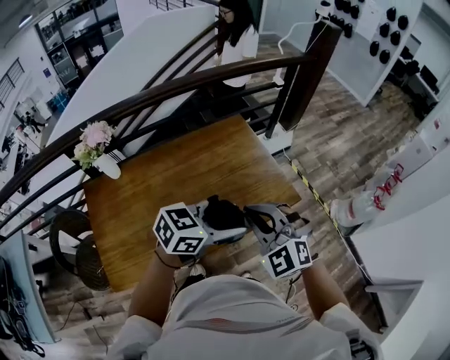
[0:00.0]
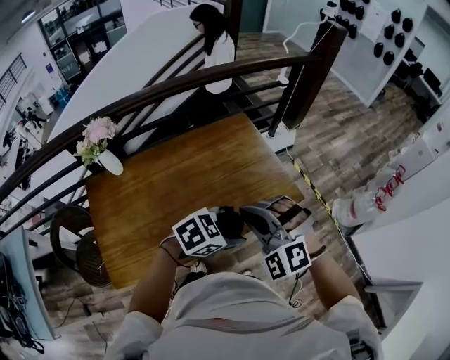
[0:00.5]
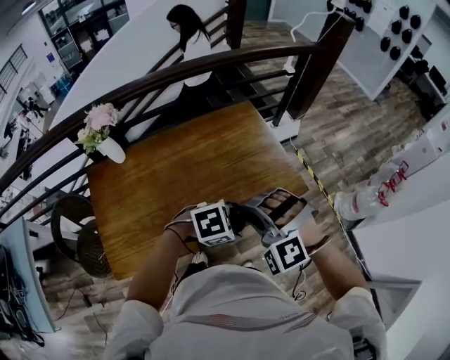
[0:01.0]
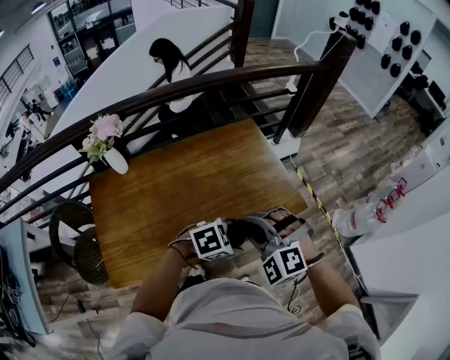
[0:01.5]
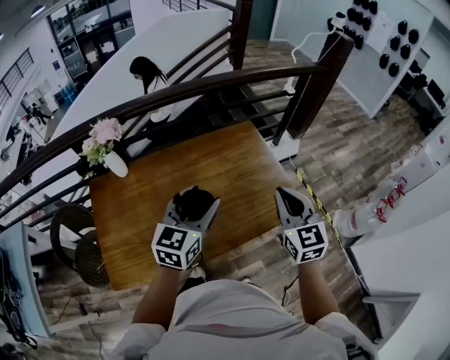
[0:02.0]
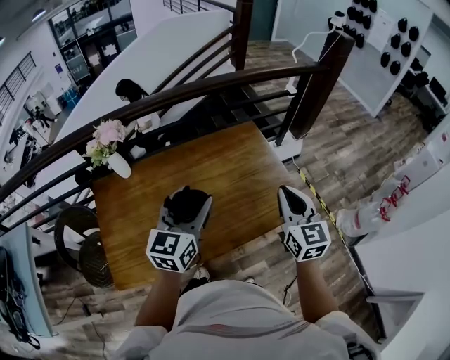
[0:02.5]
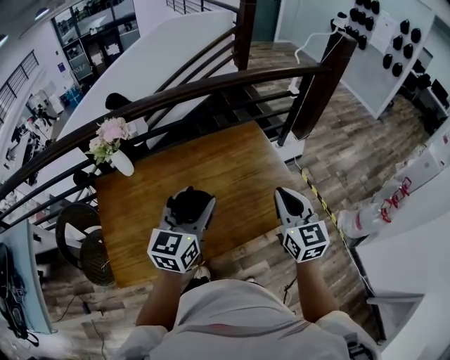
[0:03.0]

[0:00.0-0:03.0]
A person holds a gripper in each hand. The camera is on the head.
0:00.0 to 0:01.5: The right gripper ends up roughly 5 cm from where it was, and rotates roughly 20 degrees. Meanwhile the left gripper moves downward, about 15 cm, and tilts its fingers roughly 30 degrees downward.
0:01.5 to 0:03.0: The left gripper is displaced upward by roughly 15 cm, and points its fingers approximately 40 degrees further upward, while the right gripper changes place by approximately 15 cm, and rolls clockwise, seen from behind, by some 60 degrees.

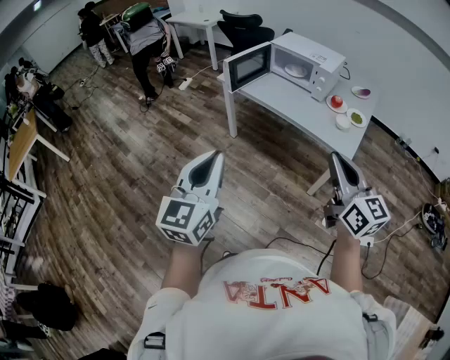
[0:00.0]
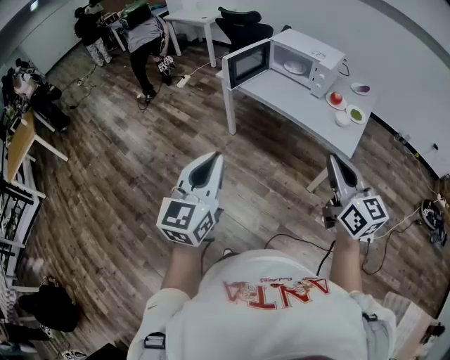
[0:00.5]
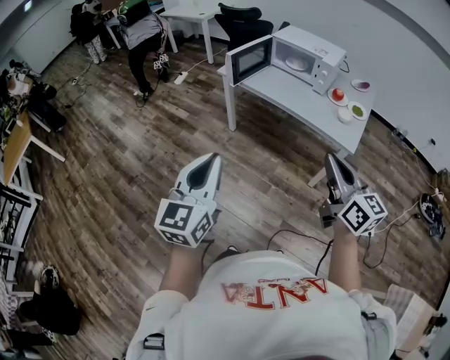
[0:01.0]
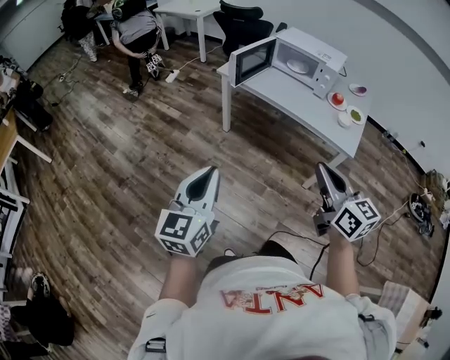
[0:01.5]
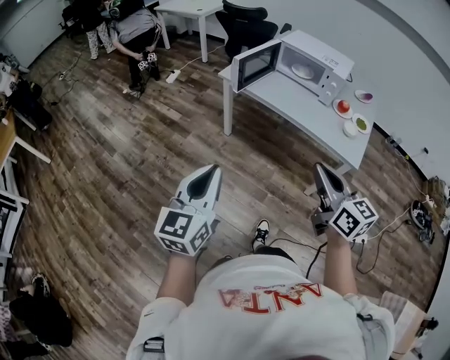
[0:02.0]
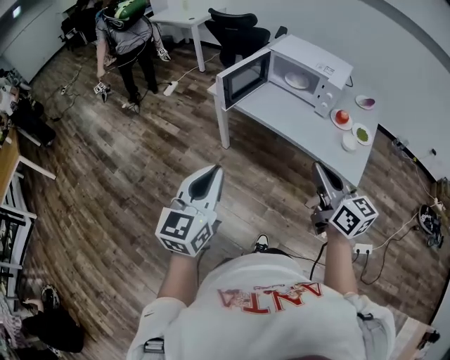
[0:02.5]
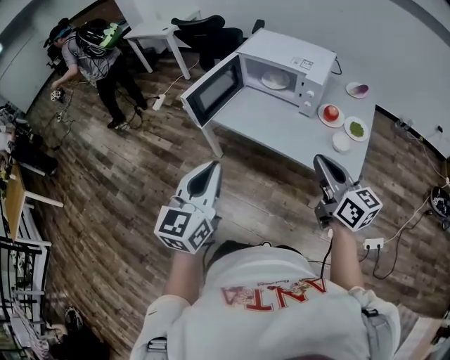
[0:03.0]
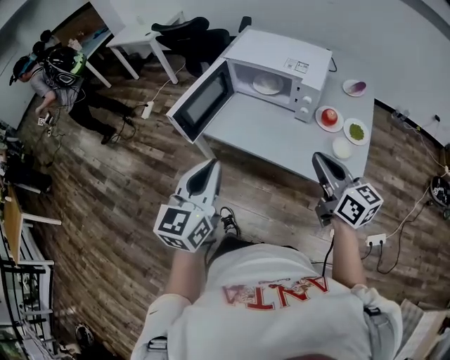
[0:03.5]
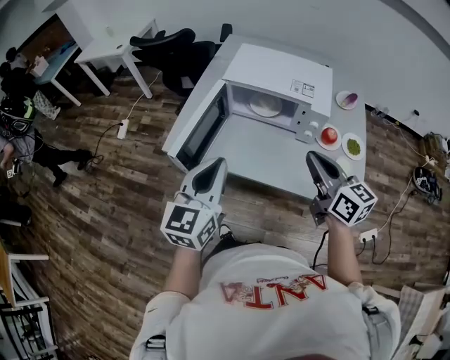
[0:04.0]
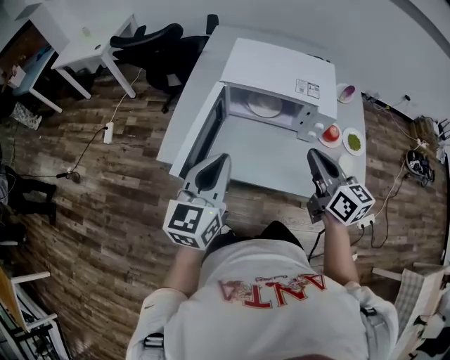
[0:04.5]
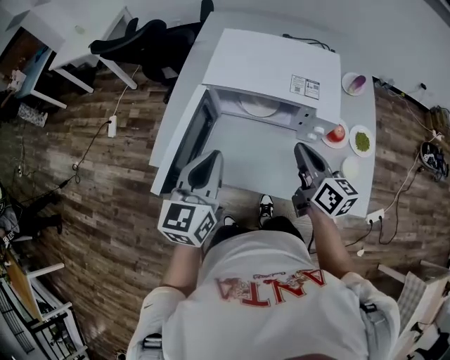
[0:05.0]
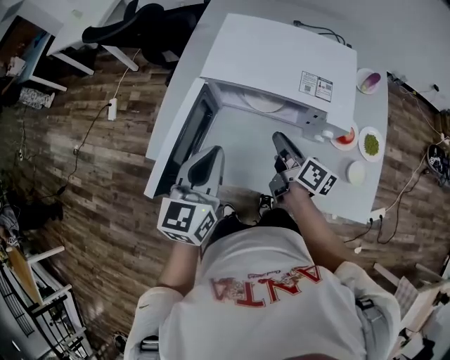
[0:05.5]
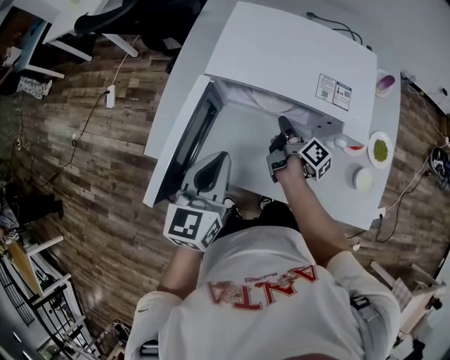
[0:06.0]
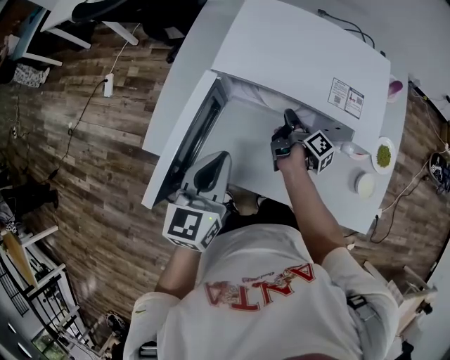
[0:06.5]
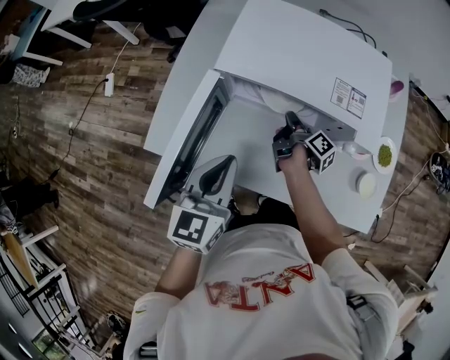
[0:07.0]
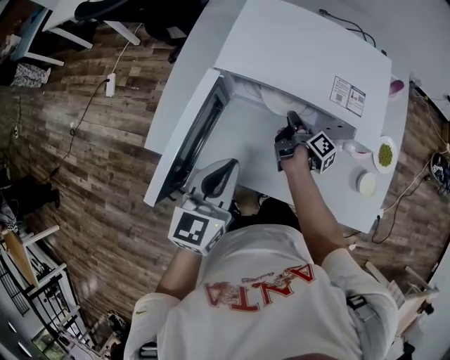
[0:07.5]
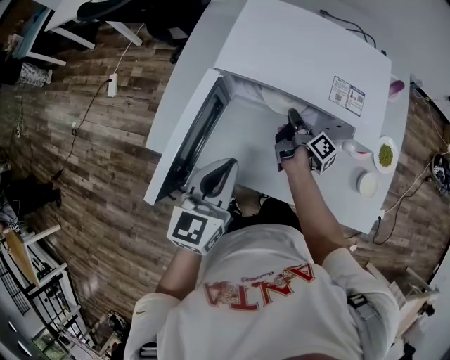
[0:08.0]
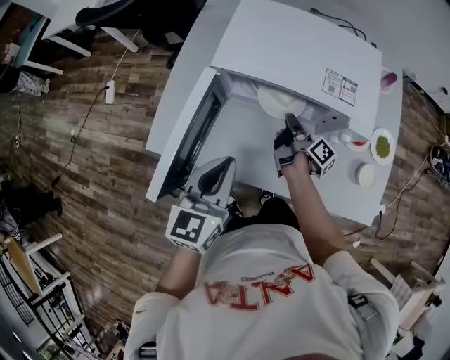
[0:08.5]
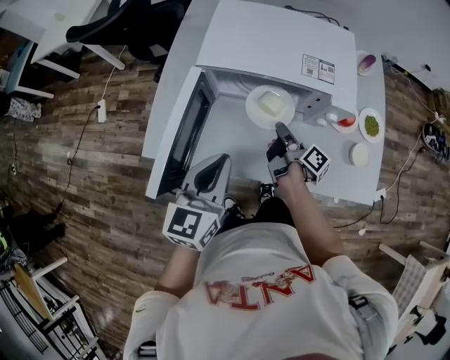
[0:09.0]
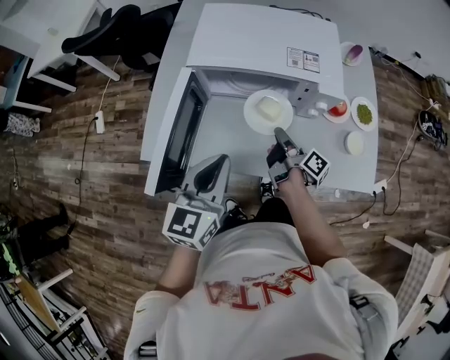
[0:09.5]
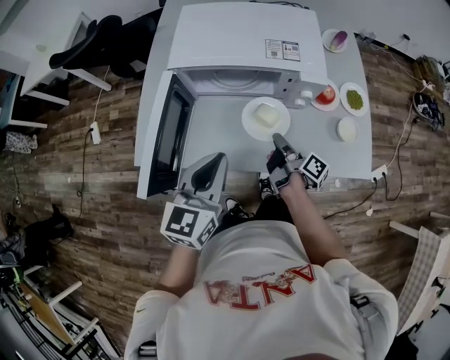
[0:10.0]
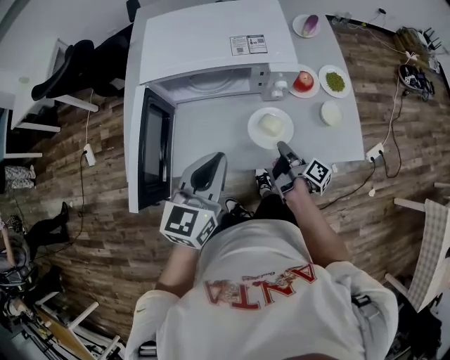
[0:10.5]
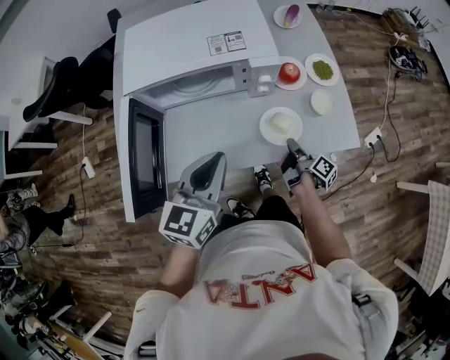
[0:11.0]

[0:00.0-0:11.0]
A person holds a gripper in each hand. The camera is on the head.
0:00.0 to 0:02.0: The grippers both shift to the left, forward and downward by roughly 15 cm.
0:02.0 to 0:03.5: The grippers both shift forward and to the right by about 35 cm.
0:03.5 to 0:05.5: The right gripper is displaced forward and downward by roughly 35 cm, and changes its angle by some 40 degrees; the left gripper heads forward, covering approximately 30 cm.
0:05.5 to 0:07.5: The left gripper moves downward, roughly 5 cm, while the right gripper moves downward and forward, some 15 cm, and changes its angle by some 30 degrees.
0:07.5 to 0:09.0: The right gripper goes approximately 10 cm backward and upward.
0:09.0 to 0:11.0: The right gripper travels to the right and backward by approximately 25 cm. The left gripper is displaced to the right by some 10 cm, and changes its angle by roughly 20 degrees.

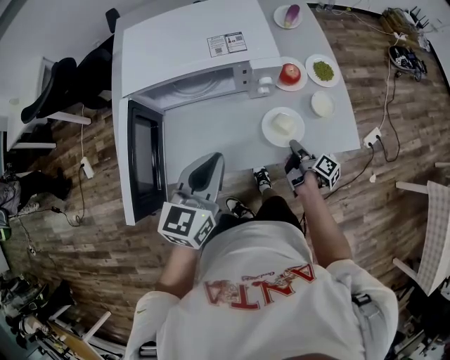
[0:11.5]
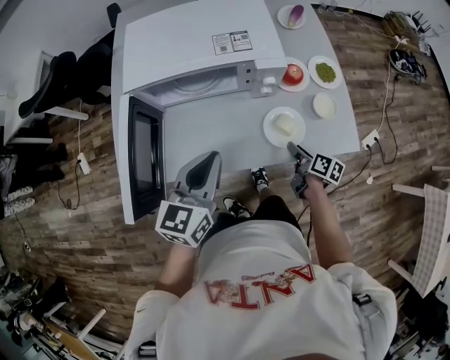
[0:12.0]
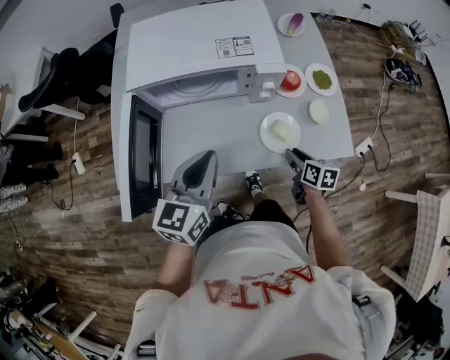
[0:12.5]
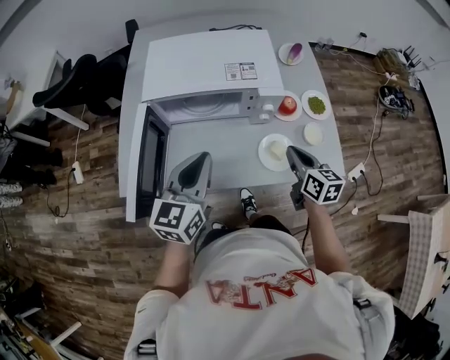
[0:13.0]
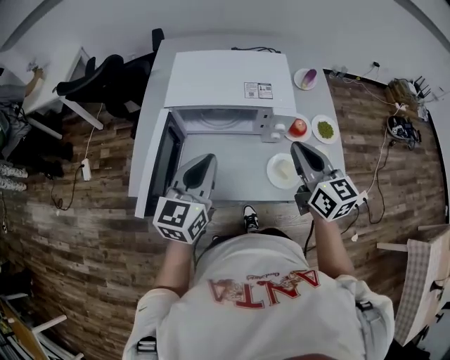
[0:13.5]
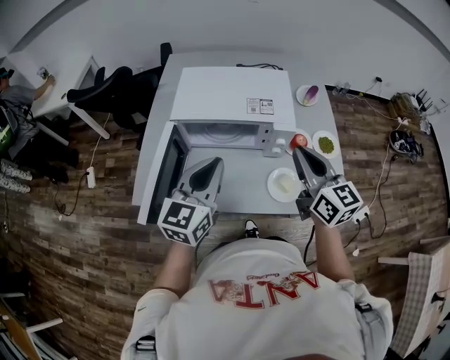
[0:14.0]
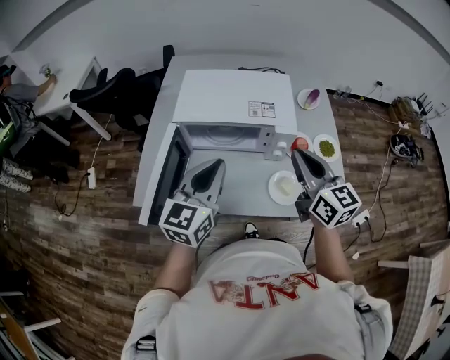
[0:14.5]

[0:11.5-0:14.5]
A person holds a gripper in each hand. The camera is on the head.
0:11.5 to 0:13.0: The right gripper goes approximately 20 cm upward, rolls counterclockwise, seen from behind, by roughly 70 degrees, and opens and closes again, while the left gripper ends up roughly 5 cm from where it was.
0:13.0 to 0:14.5: The left gripper moves upward, some 5 cm, while the right gripper travels upward by approximately 20 cm, and swivels roughly 30 degrees.

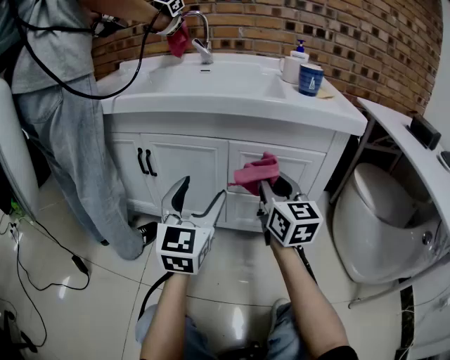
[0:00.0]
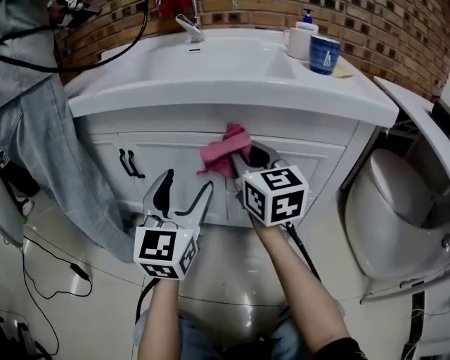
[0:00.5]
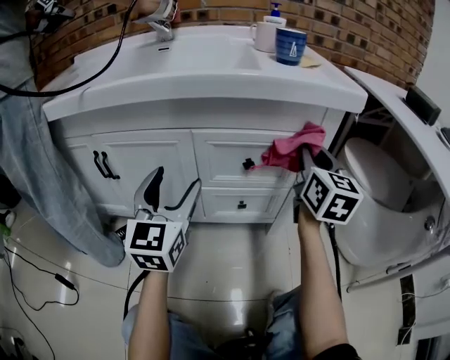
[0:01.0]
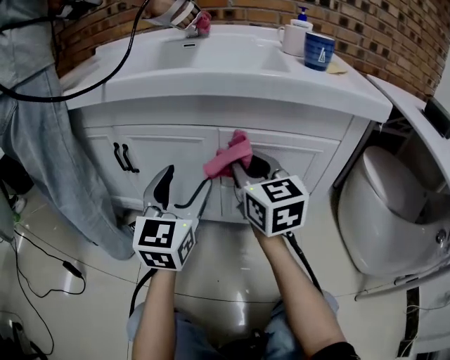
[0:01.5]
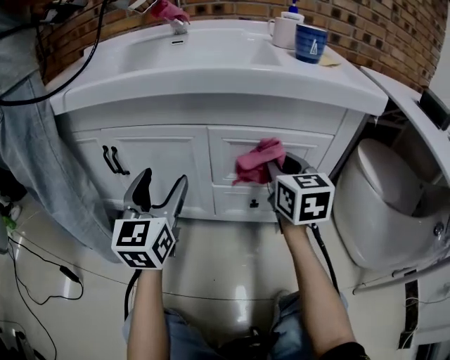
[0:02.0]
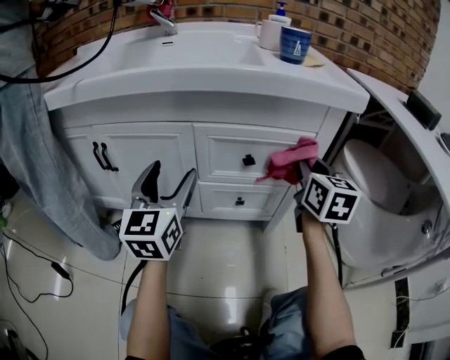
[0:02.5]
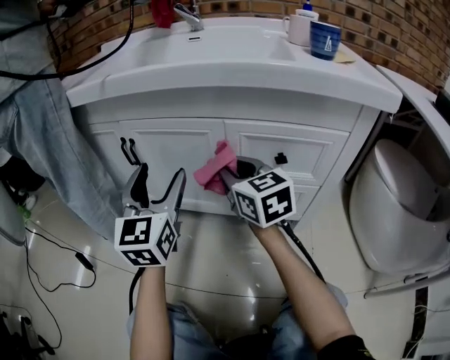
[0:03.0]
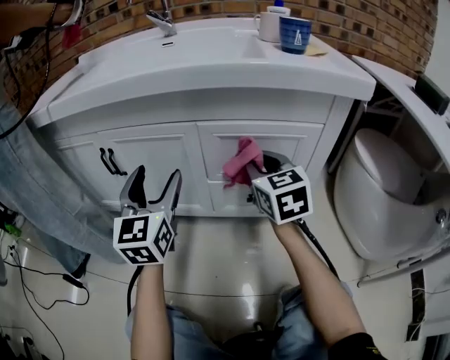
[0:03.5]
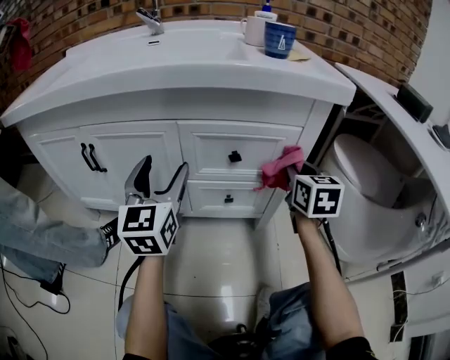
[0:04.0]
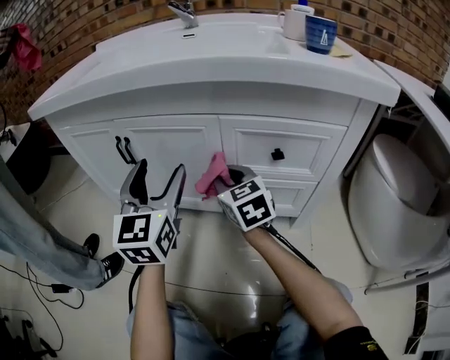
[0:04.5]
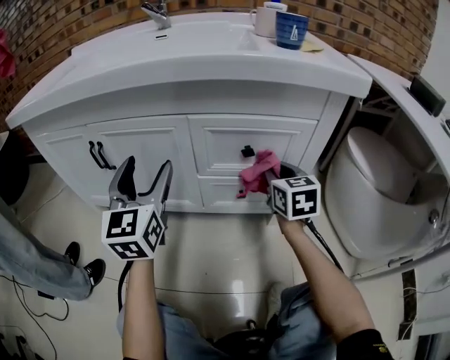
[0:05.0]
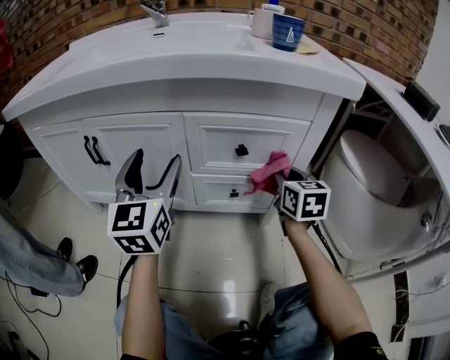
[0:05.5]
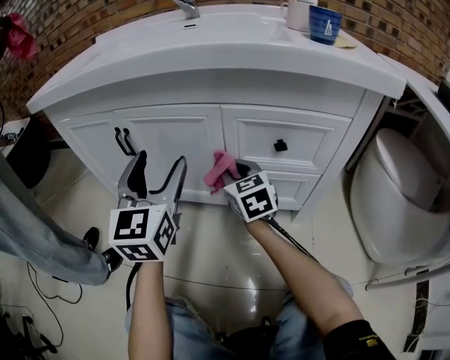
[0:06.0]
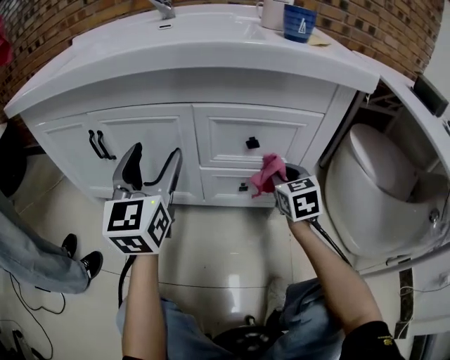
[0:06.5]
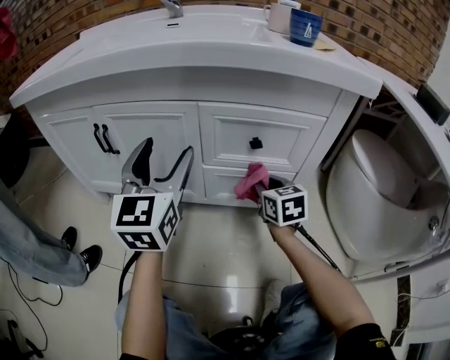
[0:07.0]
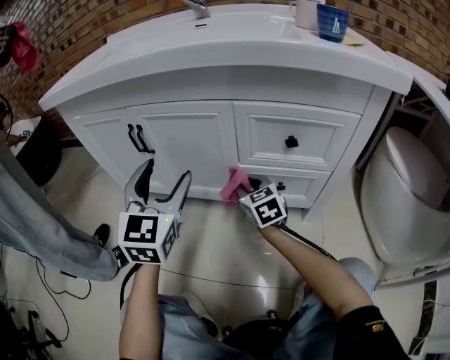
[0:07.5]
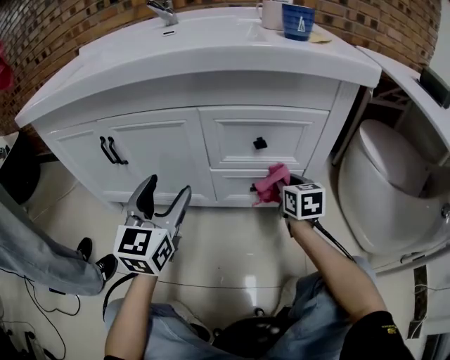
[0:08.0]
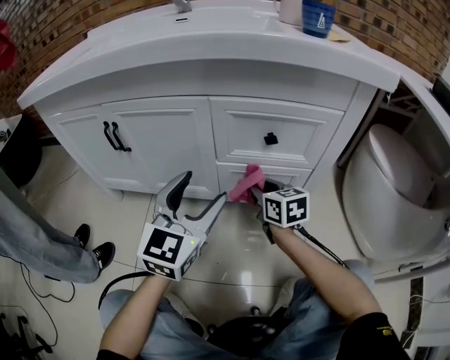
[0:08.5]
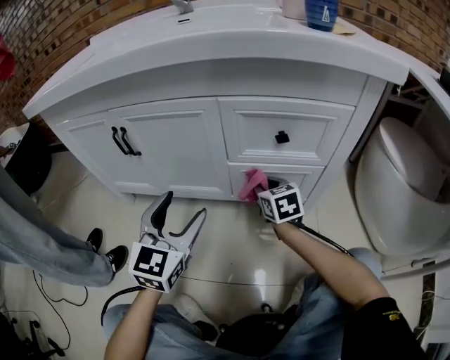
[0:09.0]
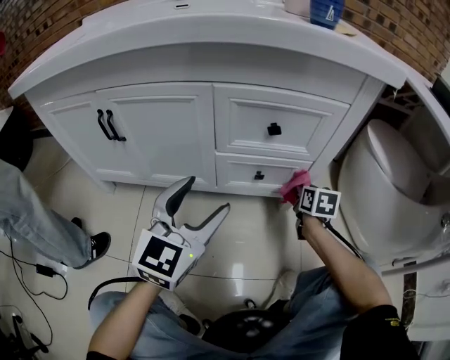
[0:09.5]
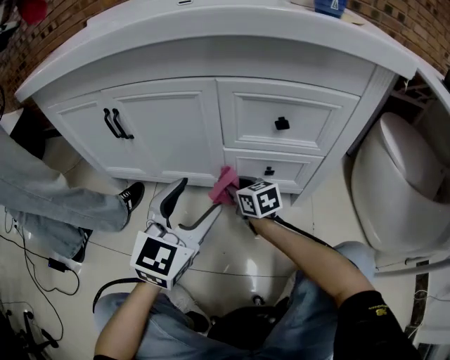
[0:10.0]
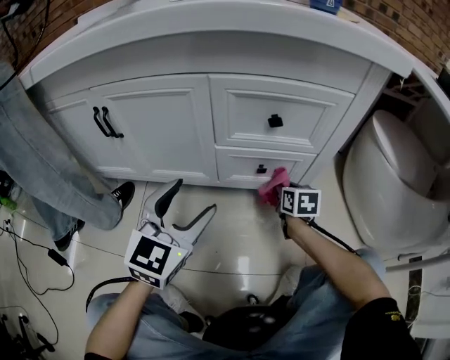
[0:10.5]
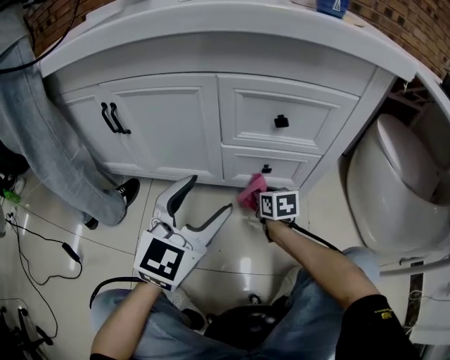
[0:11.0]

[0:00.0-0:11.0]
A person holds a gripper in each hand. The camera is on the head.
0:00.0 to 0:02.0: The right gripper goes left and right, some 25 cm each way, reversing 3 times. Meanwhile the left gripper moves forward, approximately 10 cm.
0:02.0 to 0:03.5: The left gripper moves left and right over approximately 10 cm, changing direction 2 times. Meanwhile the right gripper goes left and right, approximately 25 cm each way, reversing 2 times.
0:03.5 to 0:05.5: The left gripper swings left and right, about 10 cm each way, with 2 reversals; the right gripper goes left and right, roughly 30 cm each way, reversing 2 times.
0:05.5 to 0:07.5: The right gripper swings left and right, roughly 25 cm each way, with 2 reversals, and rotates about 30 degrees; the left gripper swings left and right, some 10 cm each way, with 2 reversals.
0:07.5 to 0:09.0: The right gripper moves to the right, some 10 cm. Meanwhile the left gripper goes approximately 10 cm downward.
0:09.0 to 0:11.0: The right gripper moves left and right over some 25 cm, changing direction 3 times. Meanwhile the left gripper goes some 5 cm to the right.
